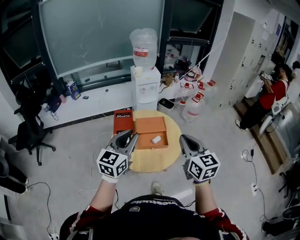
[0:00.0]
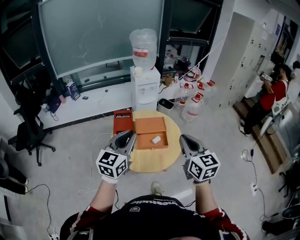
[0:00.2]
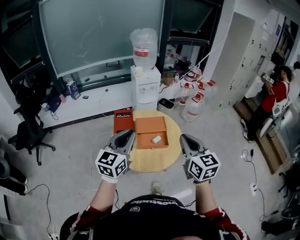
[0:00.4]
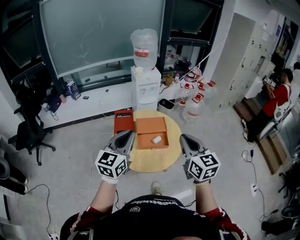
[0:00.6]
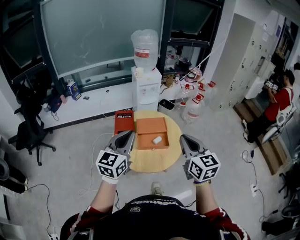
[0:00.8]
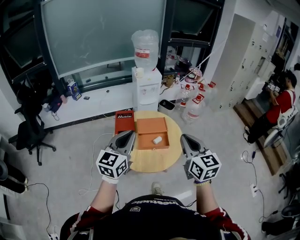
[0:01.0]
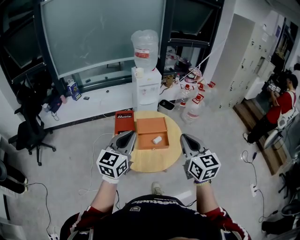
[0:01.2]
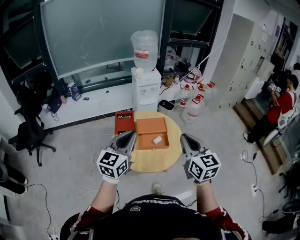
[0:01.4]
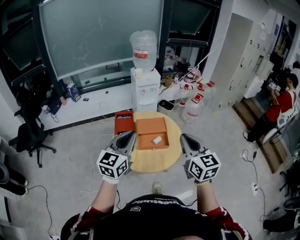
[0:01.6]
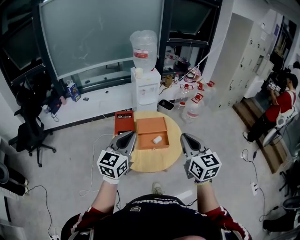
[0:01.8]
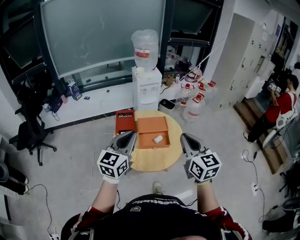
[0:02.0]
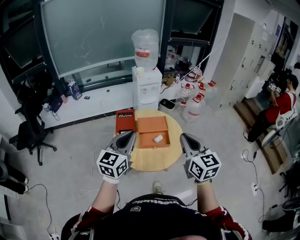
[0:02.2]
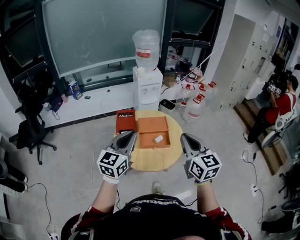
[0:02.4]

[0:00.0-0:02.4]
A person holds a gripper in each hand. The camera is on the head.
0:00.0 to 0:02.4: There are only small adjustments of the grippers.

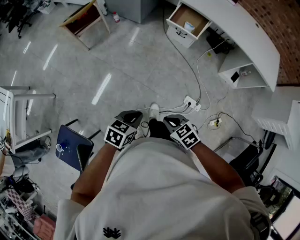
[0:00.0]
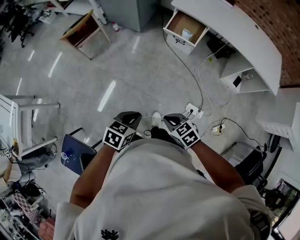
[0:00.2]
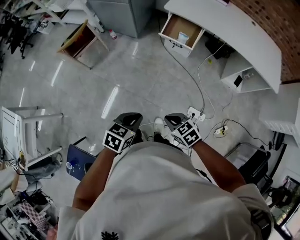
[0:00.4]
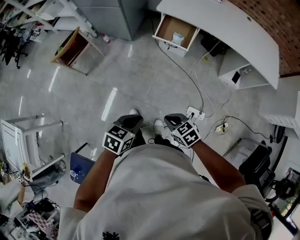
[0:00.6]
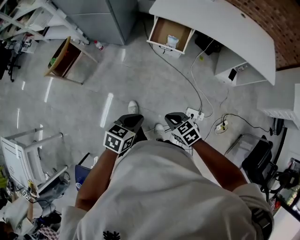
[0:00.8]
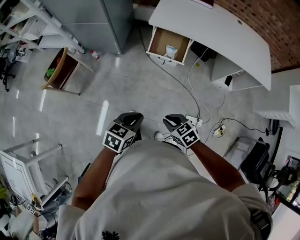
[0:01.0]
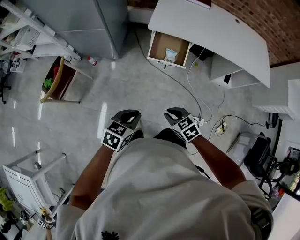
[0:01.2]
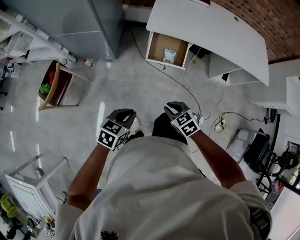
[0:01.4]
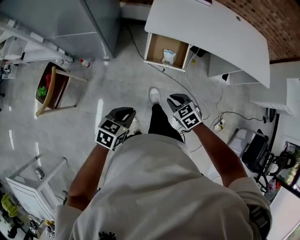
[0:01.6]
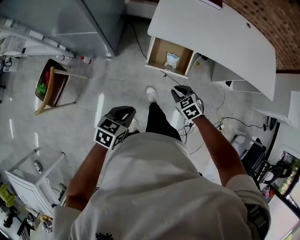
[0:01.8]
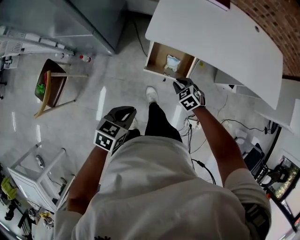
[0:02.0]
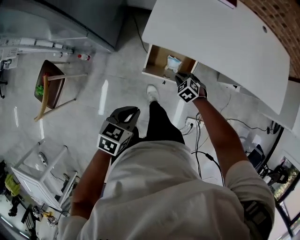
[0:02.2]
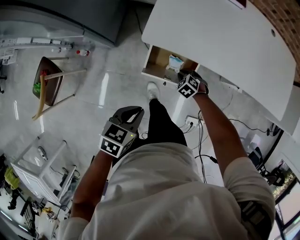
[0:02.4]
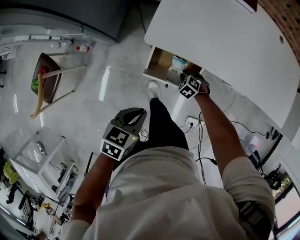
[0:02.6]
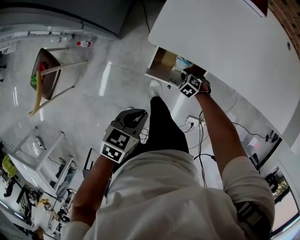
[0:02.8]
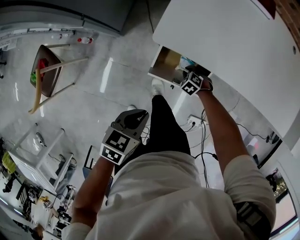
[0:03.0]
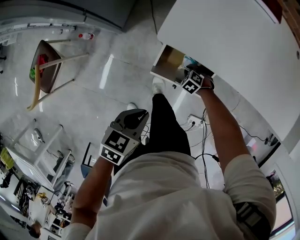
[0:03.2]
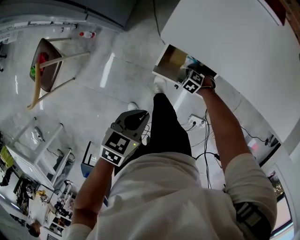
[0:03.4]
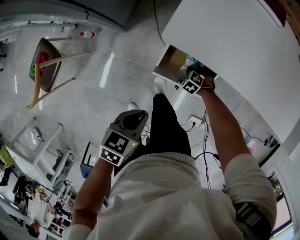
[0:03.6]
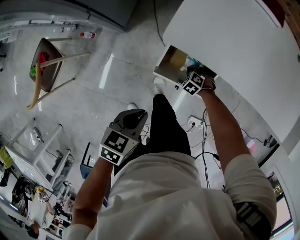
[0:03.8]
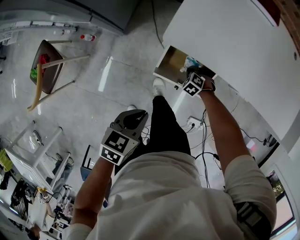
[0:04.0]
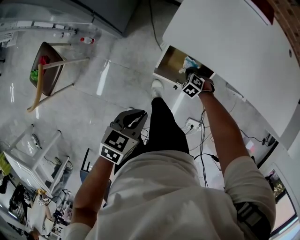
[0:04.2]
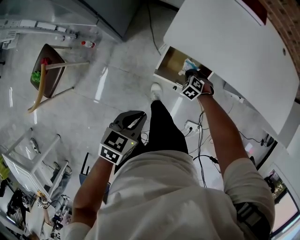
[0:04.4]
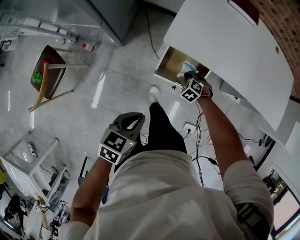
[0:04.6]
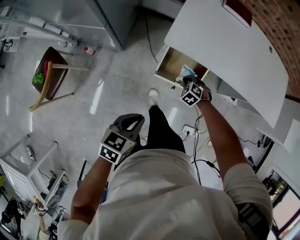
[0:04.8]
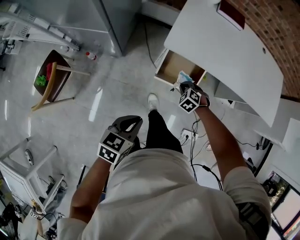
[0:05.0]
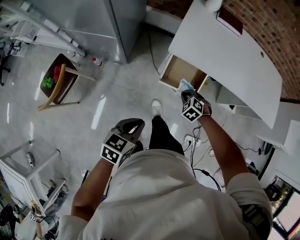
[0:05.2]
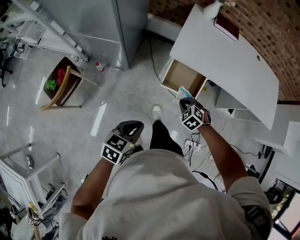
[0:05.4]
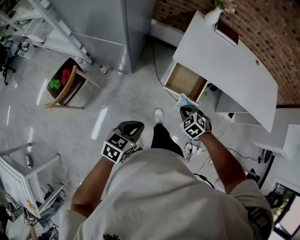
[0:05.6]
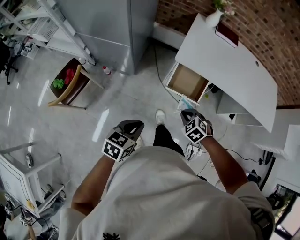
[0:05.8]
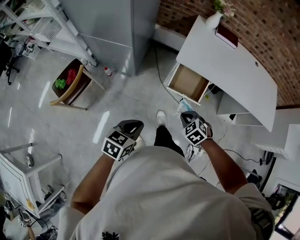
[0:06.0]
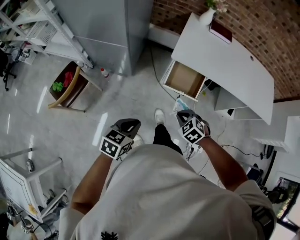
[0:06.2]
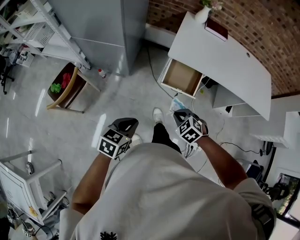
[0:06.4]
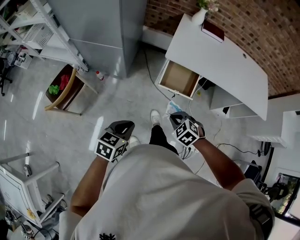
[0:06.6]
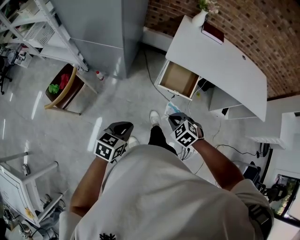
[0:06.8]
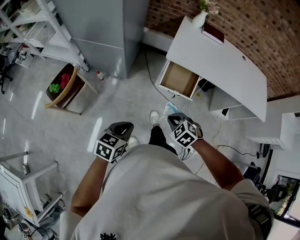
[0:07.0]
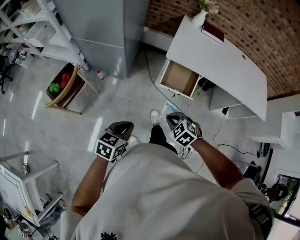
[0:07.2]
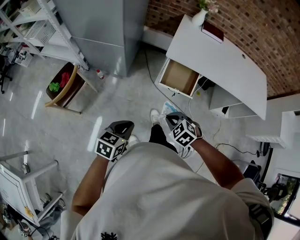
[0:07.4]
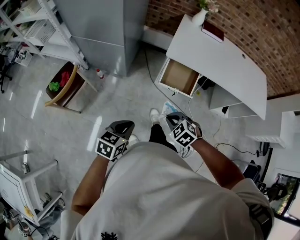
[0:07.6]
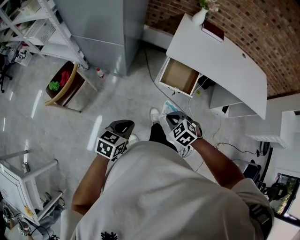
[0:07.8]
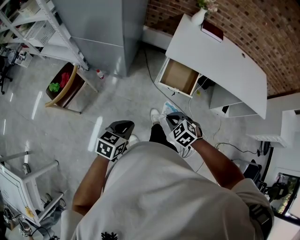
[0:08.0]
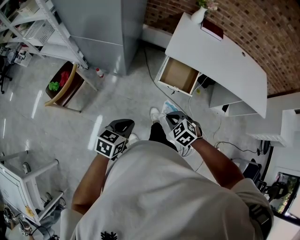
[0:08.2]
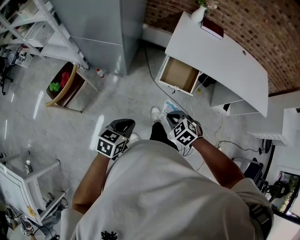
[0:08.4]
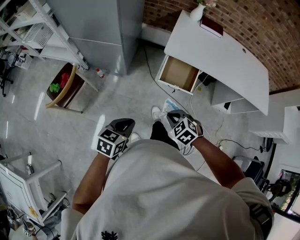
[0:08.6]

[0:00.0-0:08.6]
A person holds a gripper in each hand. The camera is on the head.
0:00.0 to 0:01.4: Both grippers are carried about 50 cm. The right gripper changes its angle by approximately 20 degrees. Meanwhile the left gripper swivels about 20 degrees.
0:01.4 to 0:02.8: The left gripper shifts by approximately 40 cm. Meanwhile the right gripper moves roughly 60 cm, and swivels approximately 40 degrees.
0:02.8 to 0:04.4: The left gripper changes place by about 10 cm; the right gripper shifts by roughly 5 cm.
0:04.4 to 0:05.8: The left gripper ends up roughly 25 cm from where it was. Meanwhile the right gripper goes some 30 cm upward.
0:05.8 to 0:07.2: The left gripper is displaced backward by about 10 cm. The right gripper is displaced backward and to the left by some 15 cm.
0:07.2 to 0:08.6: There are only small adjustments of the grippers.

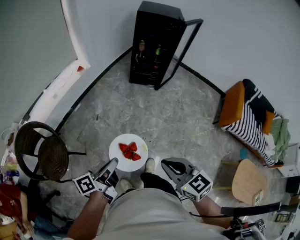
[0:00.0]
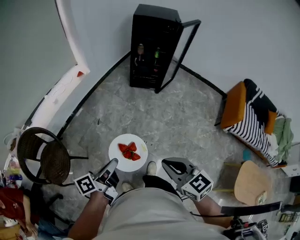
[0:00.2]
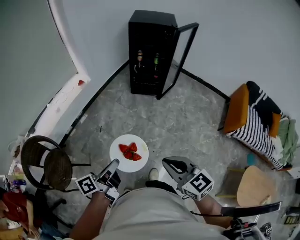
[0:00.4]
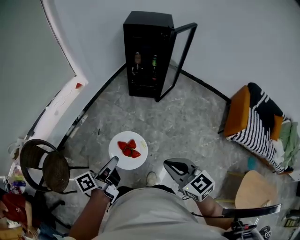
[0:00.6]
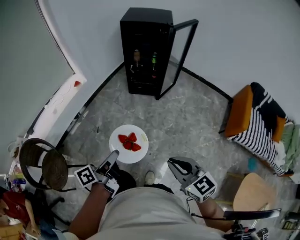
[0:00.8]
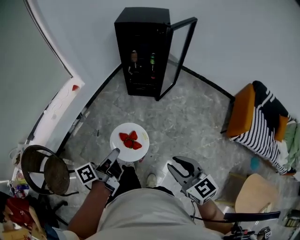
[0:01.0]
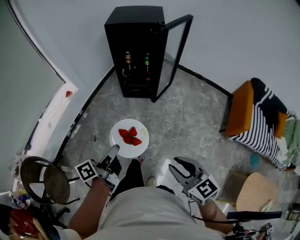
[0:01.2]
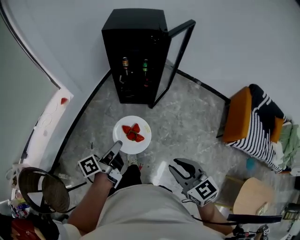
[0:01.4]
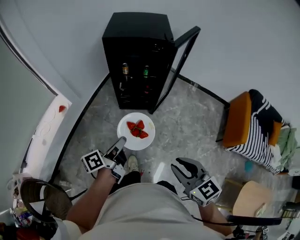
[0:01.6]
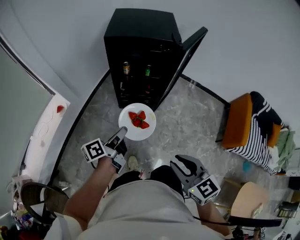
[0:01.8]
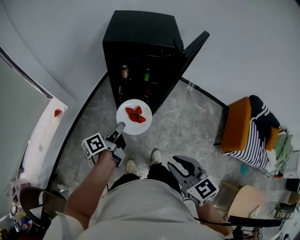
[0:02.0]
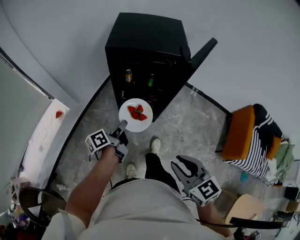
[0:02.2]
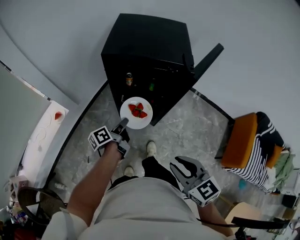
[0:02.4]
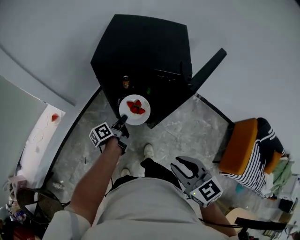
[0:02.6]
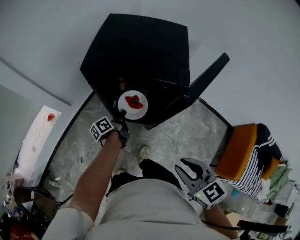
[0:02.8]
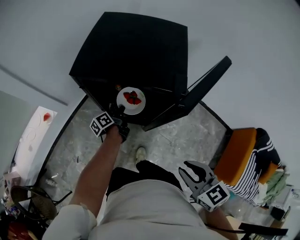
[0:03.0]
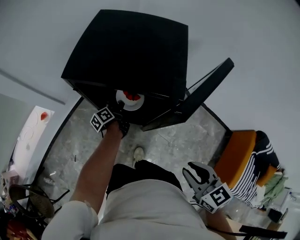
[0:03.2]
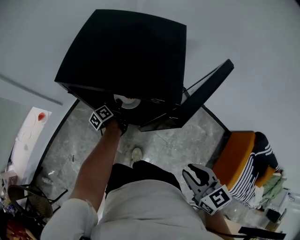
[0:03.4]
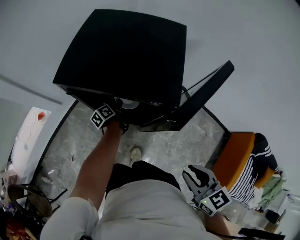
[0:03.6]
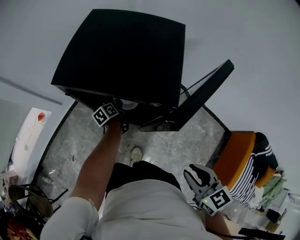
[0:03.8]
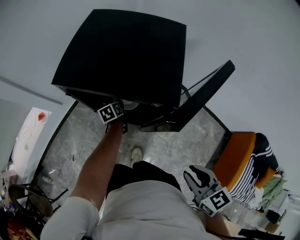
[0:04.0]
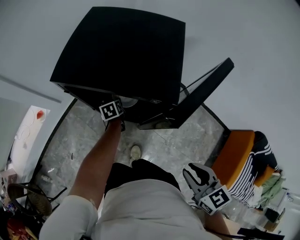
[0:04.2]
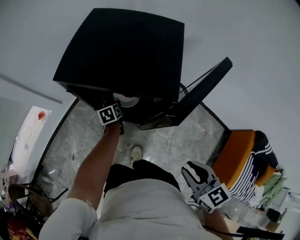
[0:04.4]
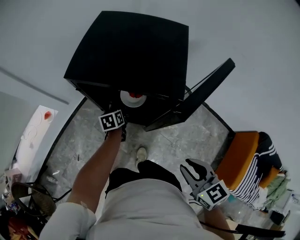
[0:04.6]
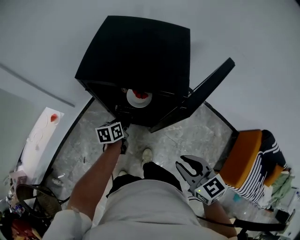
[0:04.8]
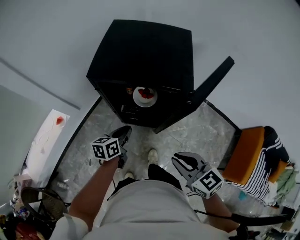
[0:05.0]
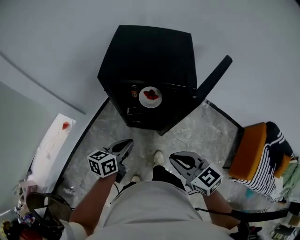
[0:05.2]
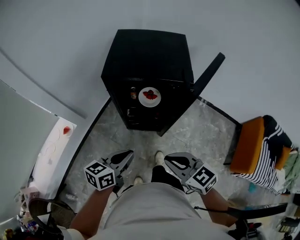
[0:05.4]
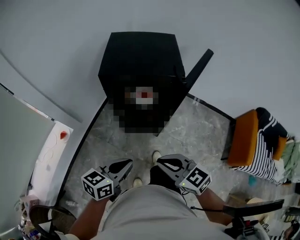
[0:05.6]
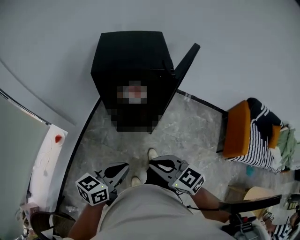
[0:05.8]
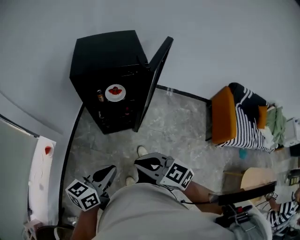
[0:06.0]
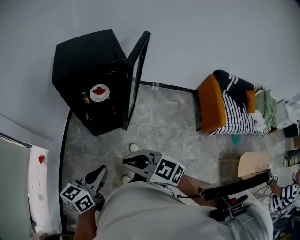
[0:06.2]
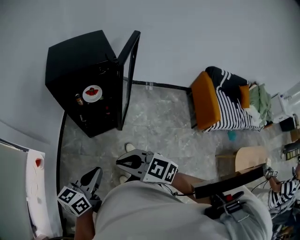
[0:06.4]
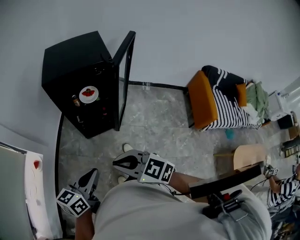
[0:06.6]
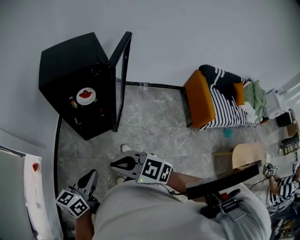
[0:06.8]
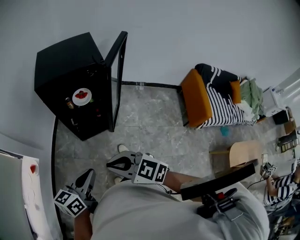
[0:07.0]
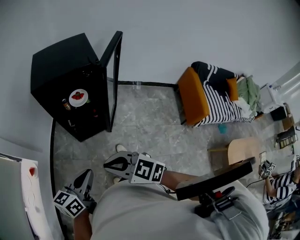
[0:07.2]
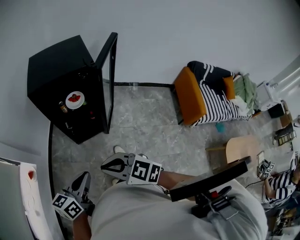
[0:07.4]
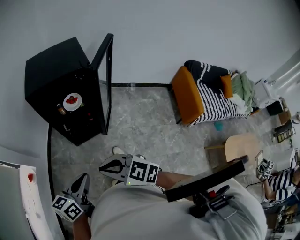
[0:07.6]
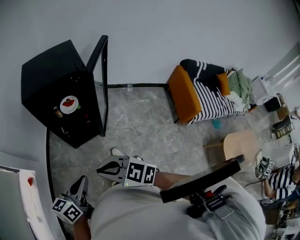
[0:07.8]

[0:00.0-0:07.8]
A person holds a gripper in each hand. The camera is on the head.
0:00.0 to 0:01.6: The pair of grippers is taken forward and to the right, roughly 50 cm. The right gripper opens.
0:01.6 to 0:03.2: The two grippers travel together, forward, approximately 50 cm. The left gripper moves downward, some 20 cm, and turns by about 30 degrees.
0:03.2 to 0:04.6: The left gripper changes its angle by about 40 degrees, and opens its fingers.
0:04.6 to 0:06.2: The left gripper moves backward and upward, about 50 cm, swivels some 60 degrees, and closes up. The right gripper travels to the left and backward by roughly 35 cm.
0:06.2 to 0:07.8: The grippers stay close to where they were, moving slightly.

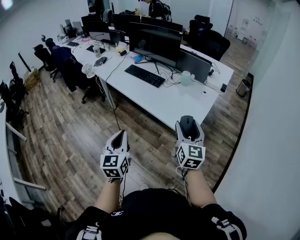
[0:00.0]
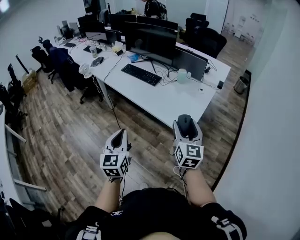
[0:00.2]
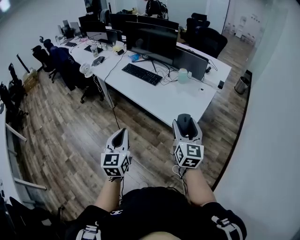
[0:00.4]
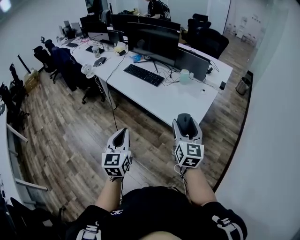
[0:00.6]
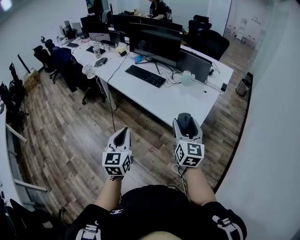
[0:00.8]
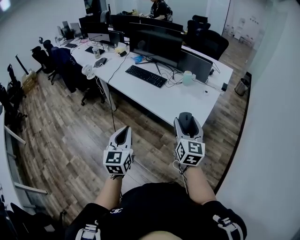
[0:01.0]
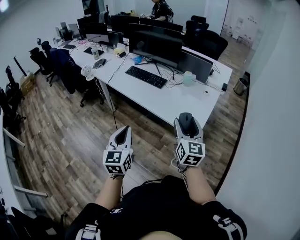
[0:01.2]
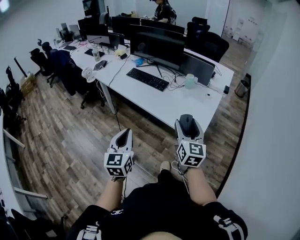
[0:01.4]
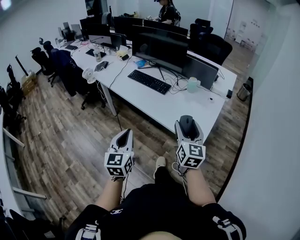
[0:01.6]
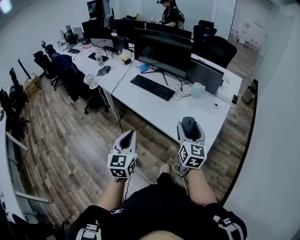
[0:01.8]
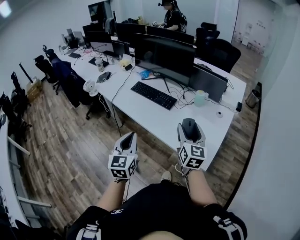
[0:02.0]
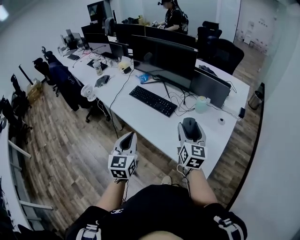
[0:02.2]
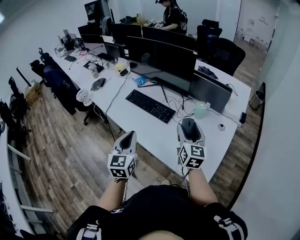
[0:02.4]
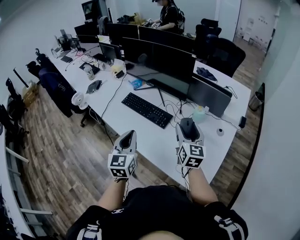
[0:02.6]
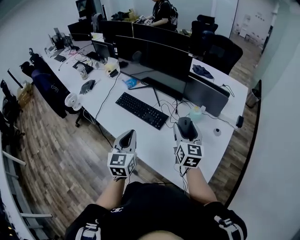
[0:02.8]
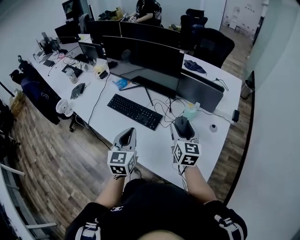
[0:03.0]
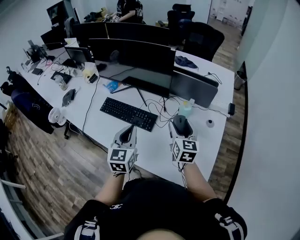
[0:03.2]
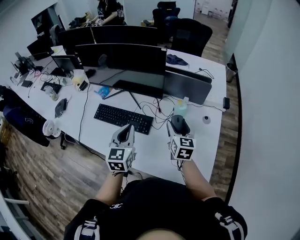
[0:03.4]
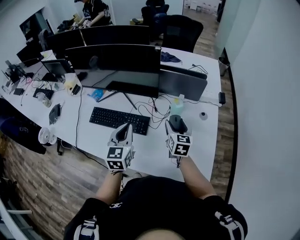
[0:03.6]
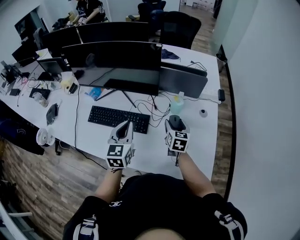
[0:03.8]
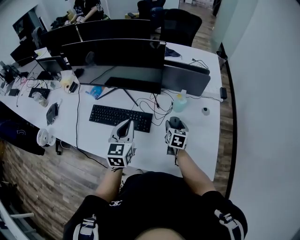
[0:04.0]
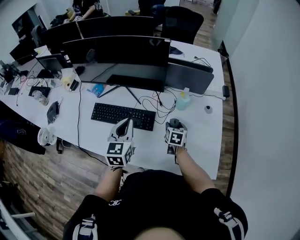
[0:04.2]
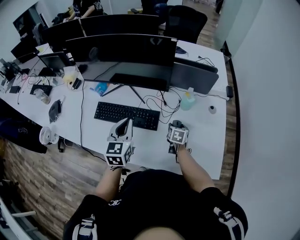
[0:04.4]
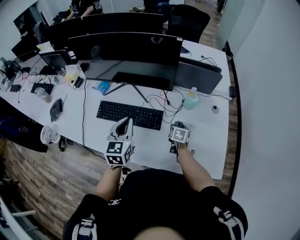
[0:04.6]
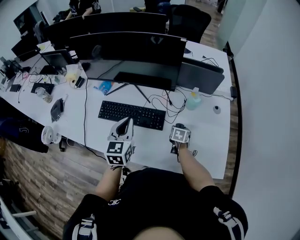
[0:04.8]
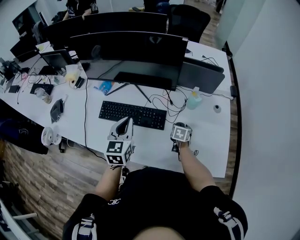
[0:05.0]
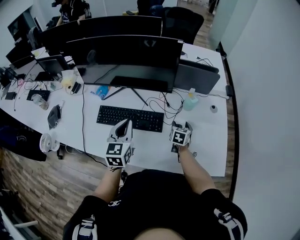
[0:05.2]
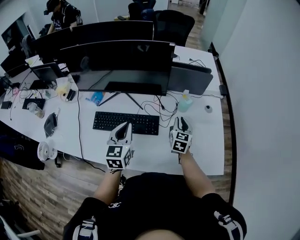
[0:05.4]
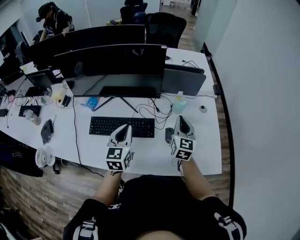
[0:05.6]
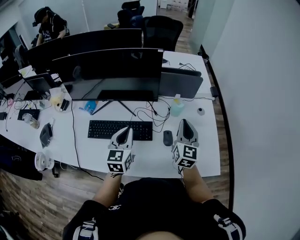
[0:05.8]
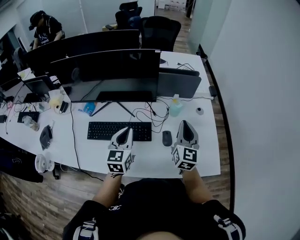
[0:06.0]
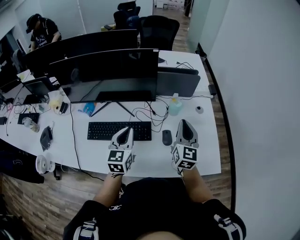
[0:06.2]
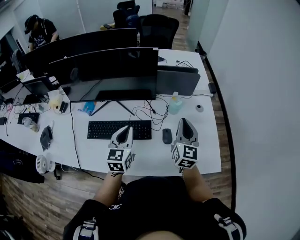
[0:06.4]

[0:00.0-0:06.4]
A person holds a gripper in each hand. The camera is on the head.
0:00.0 to 0:01.6: The left gripper heads forward and to the left, covering about 10 cm. Meanwhile the right gripper heads to the left and forward, covering some 10 cm.
0:01.6 to 0:03.2: The pair of grippers is taken forward, approximately 50 cm.
0:03.2 to 0:04.8: The right gripper goes about 30 cm downward, and tips its fingers downward by some 40 degrees. The left gripper is displaced to the left and forward by roughly 20 cm.
0:04.8 to 0:06.4: The right gripper moves upward, roughly 30 cm, angles its fingers upward, by about 50 degrees, and closes its fingers, while the left gripper shifts by about 5 cm.
